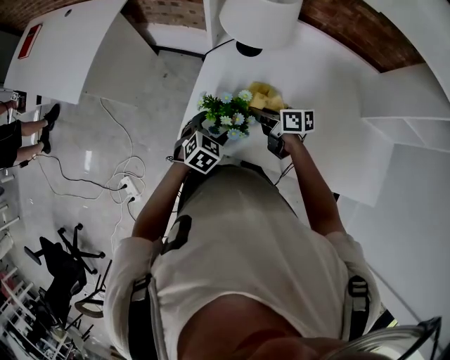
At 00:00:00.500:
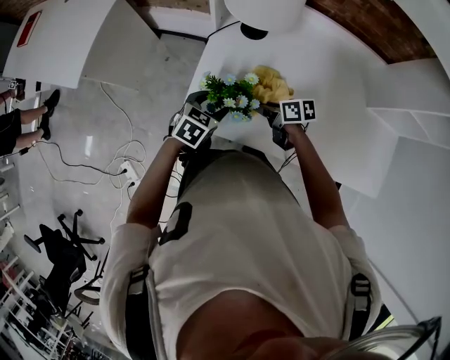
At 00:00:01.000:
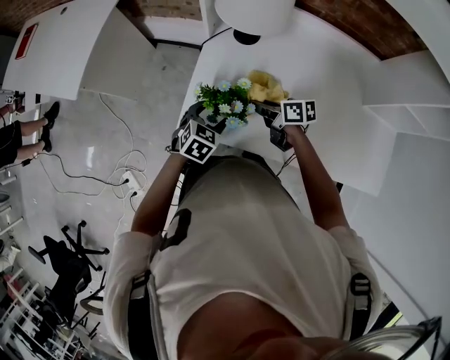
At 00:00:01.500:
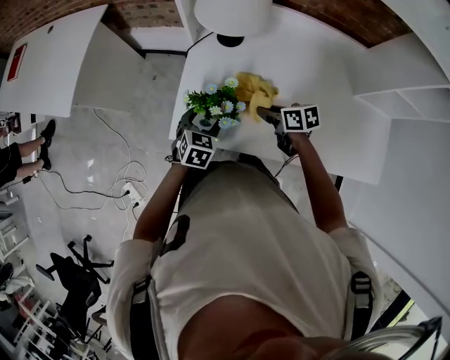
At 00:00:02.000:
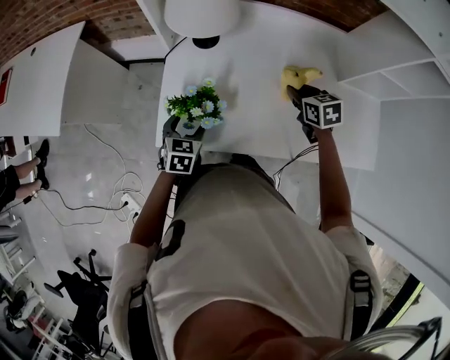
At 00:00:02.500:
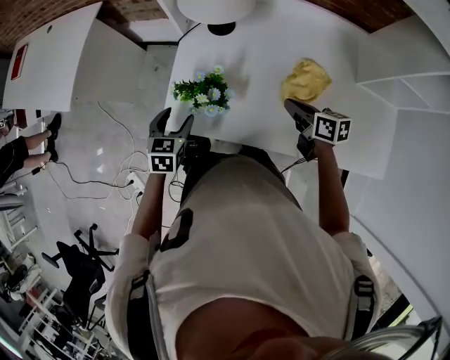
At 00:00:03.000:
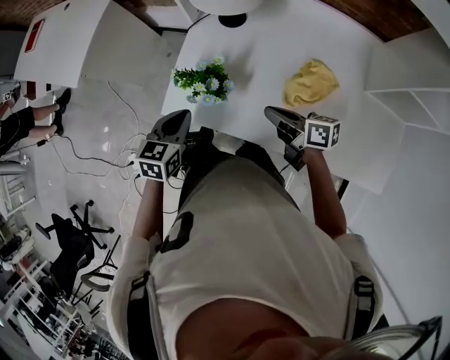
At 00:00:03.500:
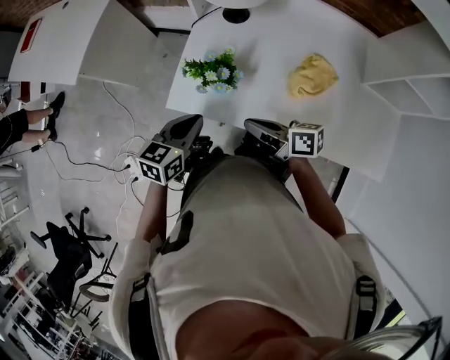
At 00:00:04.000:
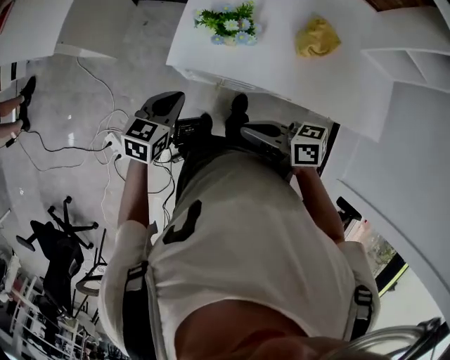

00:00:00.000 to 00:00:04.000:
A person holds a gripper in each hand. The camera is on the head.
00:00:00.000 to 00:00:02.000: The right gripper heads to the right, covering approximately 20 cm, and swivels some 40 degrees.
00:00:02.000 to 00:00:04.000: The left gripper moves backward and to the left, roughly 20 cm, and closes its fingers, while the right gripper heads to the left and backward, covering approximately 40 cm, and changes its angle by some 50 degrees.

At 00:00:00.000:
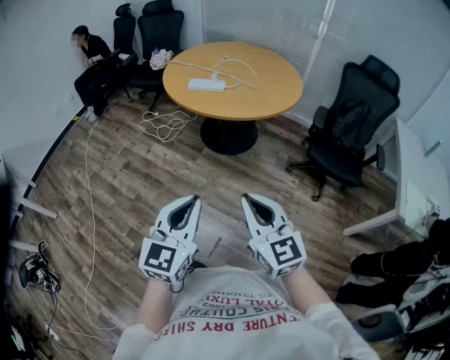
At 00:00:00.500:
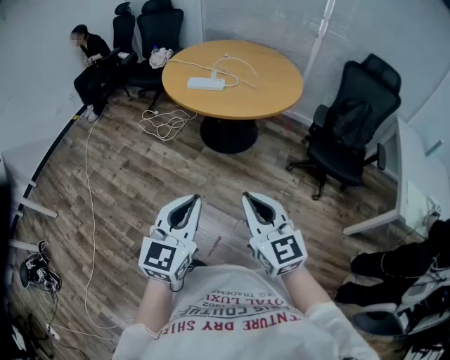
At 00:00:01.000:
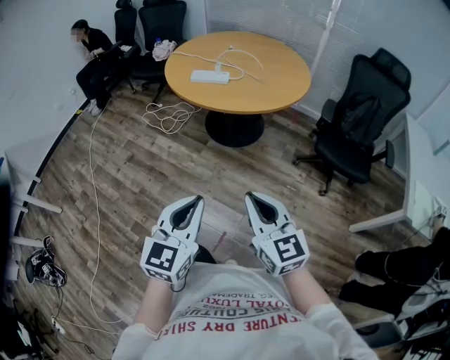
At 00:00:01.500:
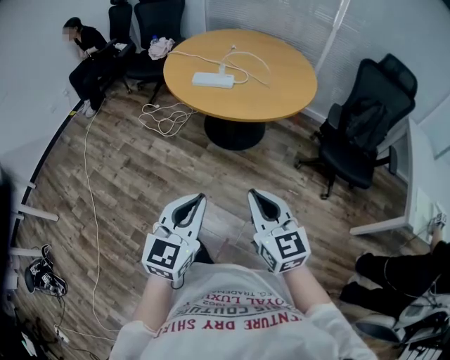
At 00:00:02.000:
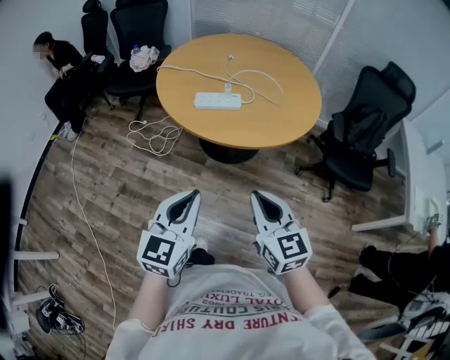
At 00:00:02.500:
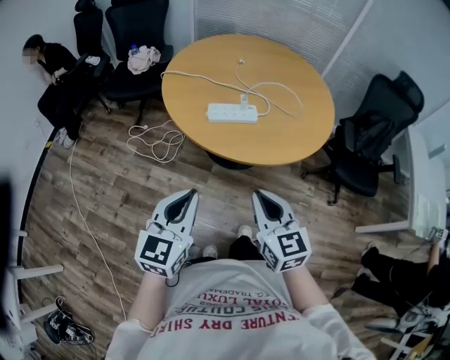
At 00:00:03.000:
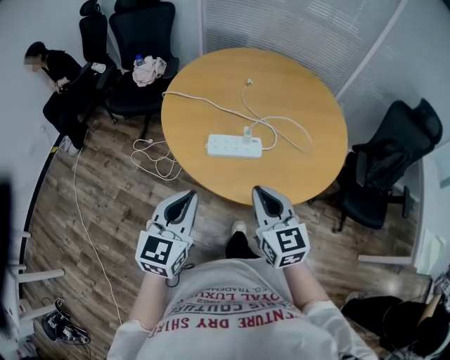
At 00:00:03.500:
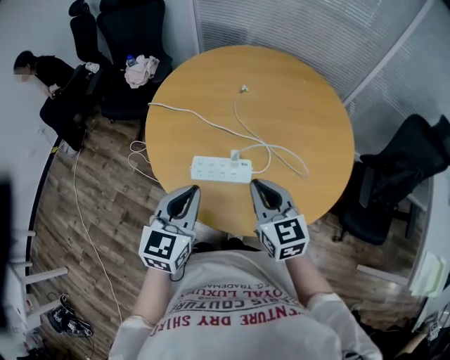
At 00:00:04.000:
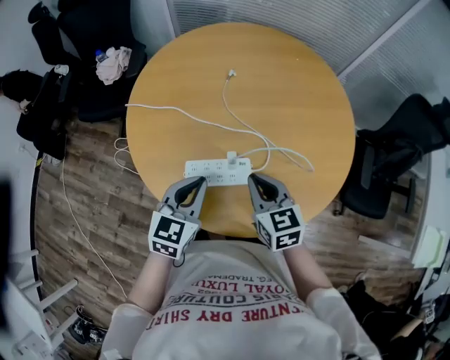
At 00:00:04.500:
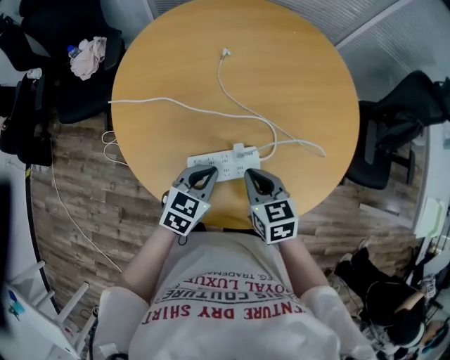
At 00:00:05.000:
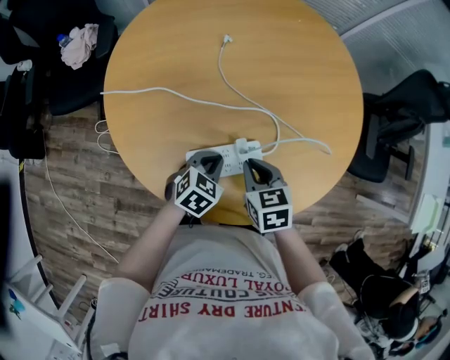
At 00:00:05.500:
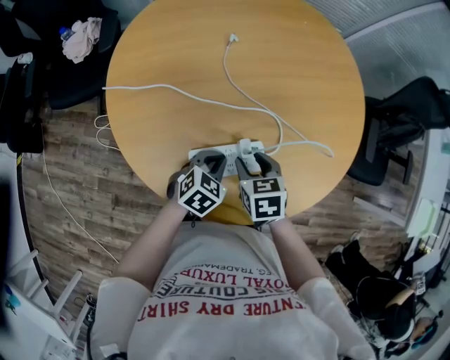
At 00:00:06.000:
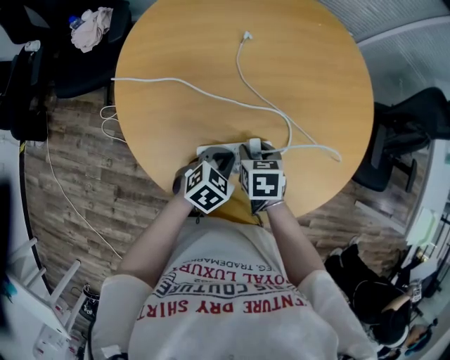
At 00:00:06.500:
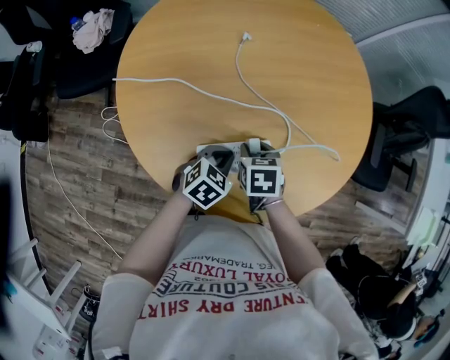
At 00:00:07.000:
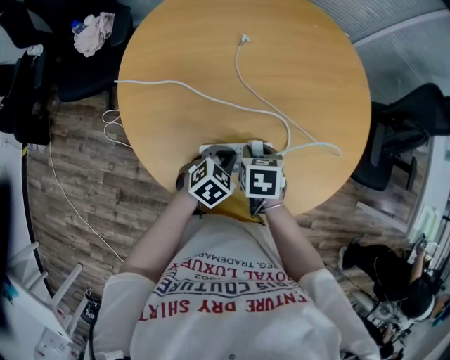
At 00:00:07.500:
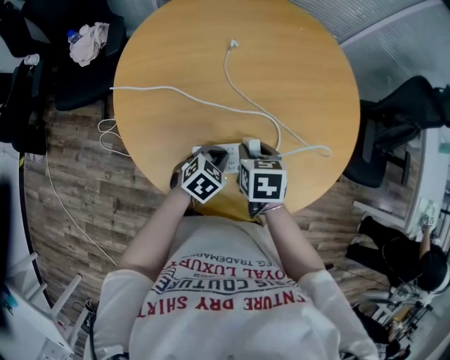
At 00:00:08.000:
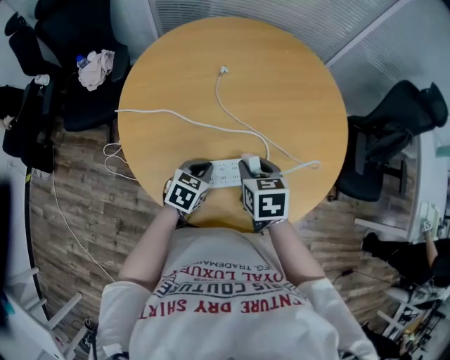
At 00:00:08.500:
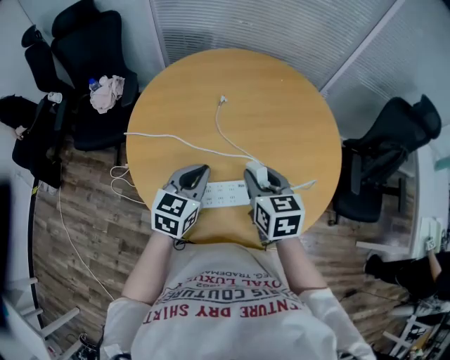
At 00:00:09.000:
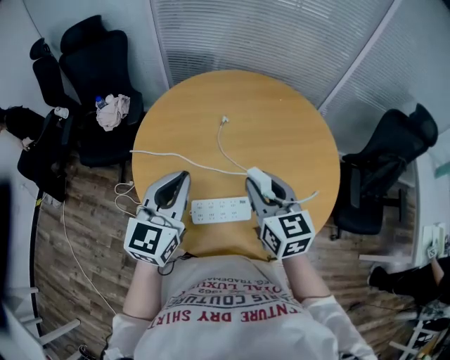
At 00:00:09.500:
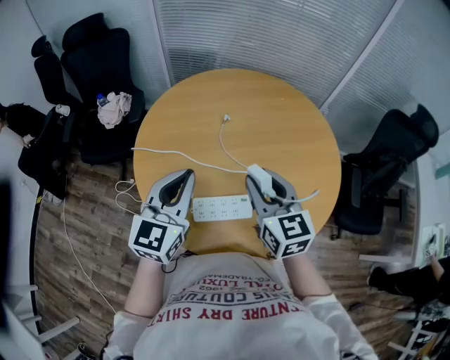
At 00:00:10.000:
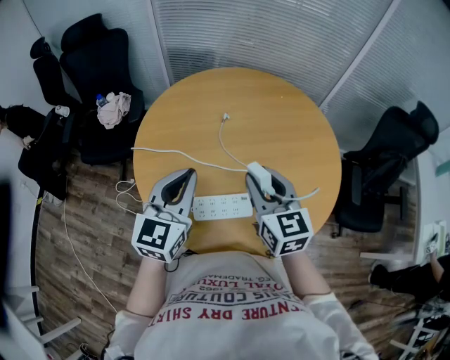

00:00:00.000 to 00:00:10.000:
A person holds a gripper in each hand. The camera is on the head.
00:00:00.000 to 00:00:02.000: Both grippers travel together forward and to the left, some 30 cm.
00:00:02.000 to 00:00:04.000: The pair of grippers is taken forward, roughly 50 cm.
00:00:04.000 to 00:00:06.000: The two grippers go some 15 cm downward. The left gripper rotates approximately 40 degrees. Meanwhile the right gripper angles its fingers downward, by roughly 30 degrees, and opens up.
00:00:06.000 to 00:00:08.000: The right gripper moves upward, some 10 cm.
00:00:08.000 to 00:00:10.000: The left gripper moves upward, about 30 cm, and tips its fingers upward by about 40 degrees. The right gripper shifts some 15 cm upward, and angles its fingers upward, by some 30 degrees.

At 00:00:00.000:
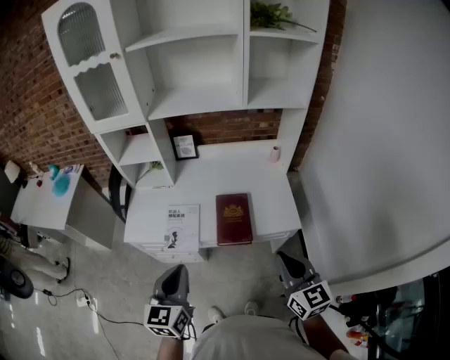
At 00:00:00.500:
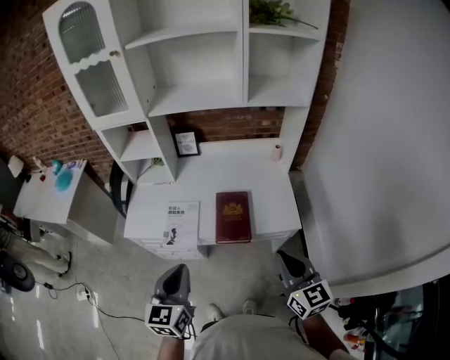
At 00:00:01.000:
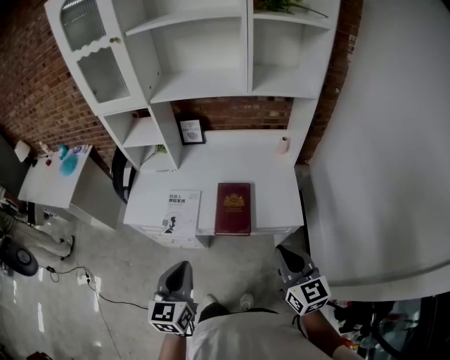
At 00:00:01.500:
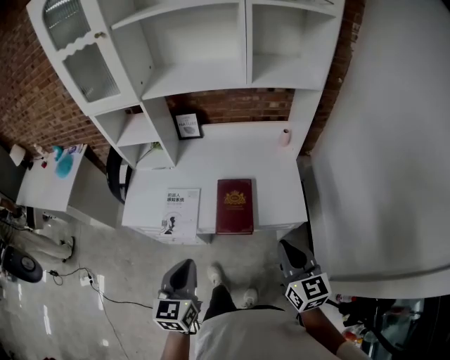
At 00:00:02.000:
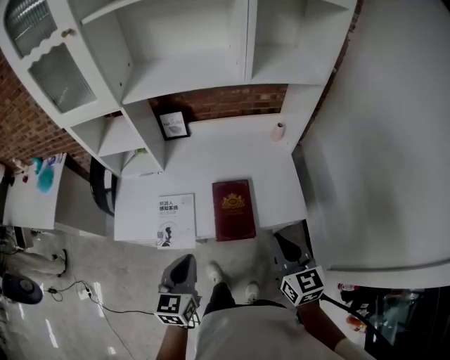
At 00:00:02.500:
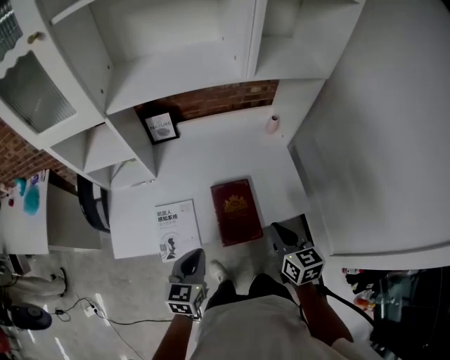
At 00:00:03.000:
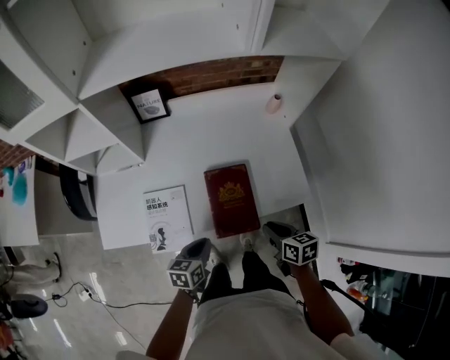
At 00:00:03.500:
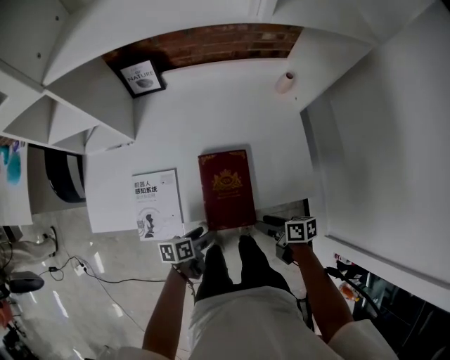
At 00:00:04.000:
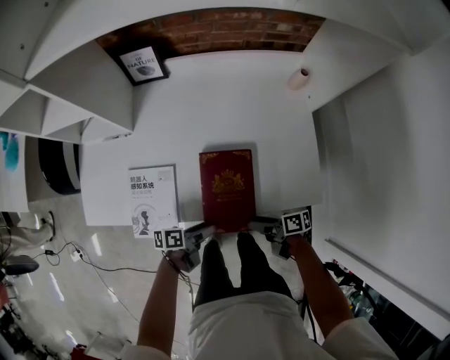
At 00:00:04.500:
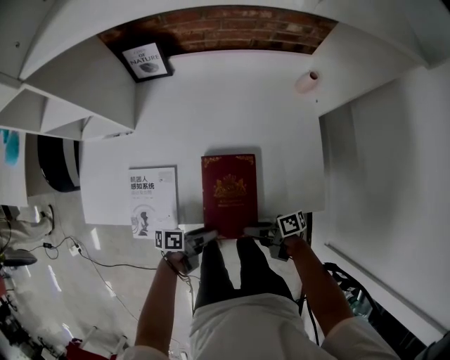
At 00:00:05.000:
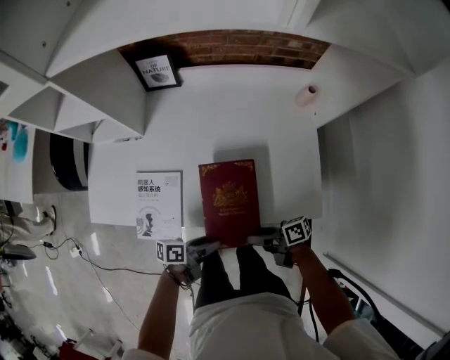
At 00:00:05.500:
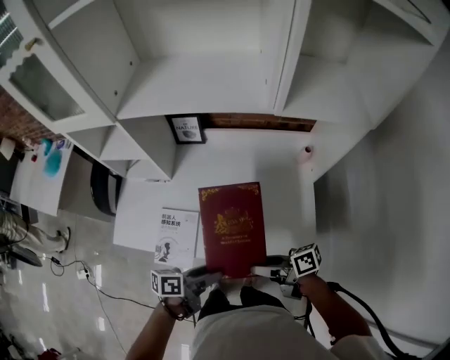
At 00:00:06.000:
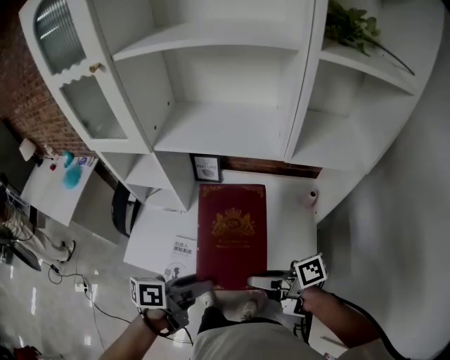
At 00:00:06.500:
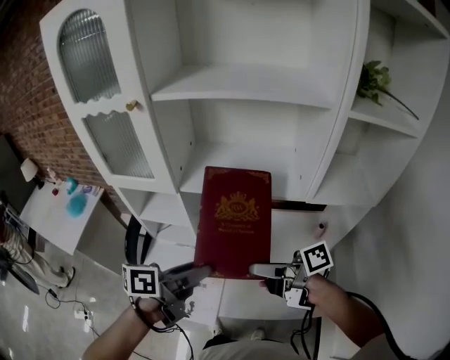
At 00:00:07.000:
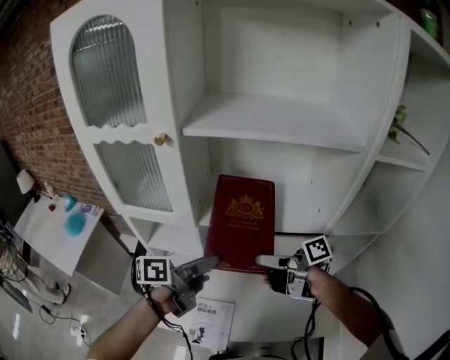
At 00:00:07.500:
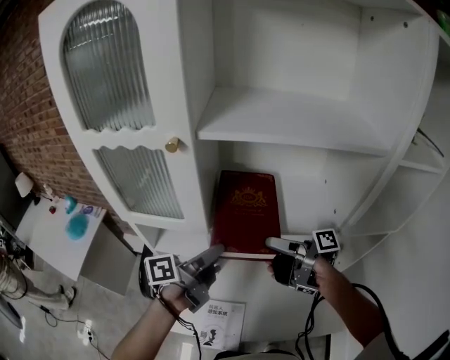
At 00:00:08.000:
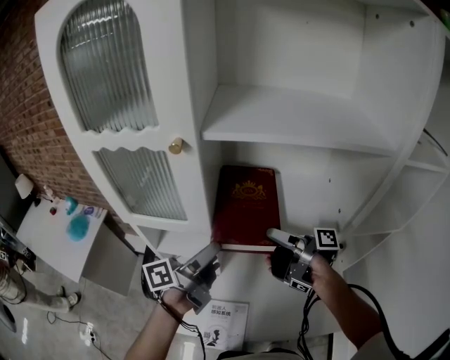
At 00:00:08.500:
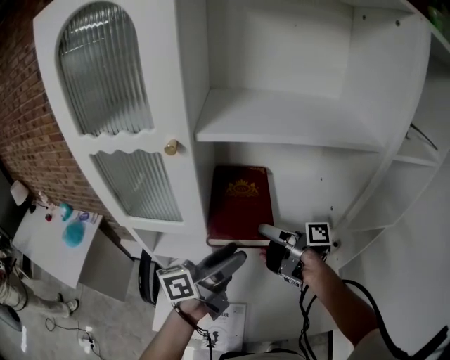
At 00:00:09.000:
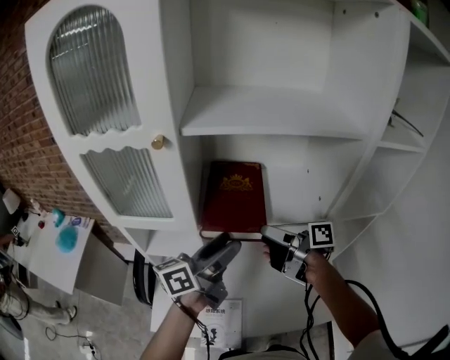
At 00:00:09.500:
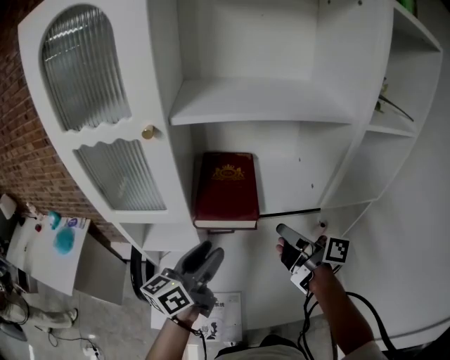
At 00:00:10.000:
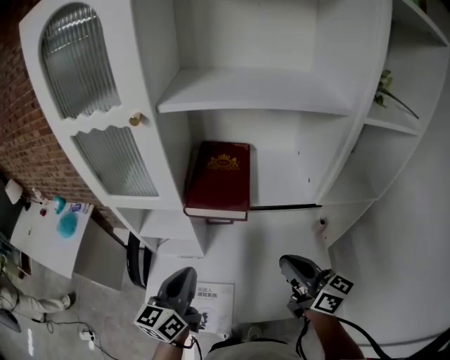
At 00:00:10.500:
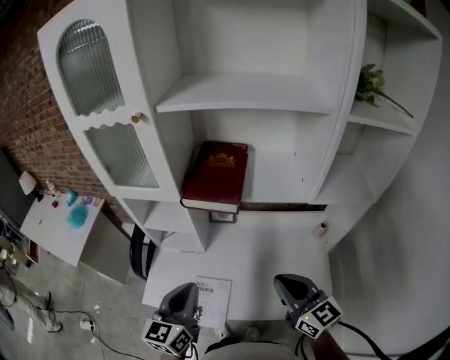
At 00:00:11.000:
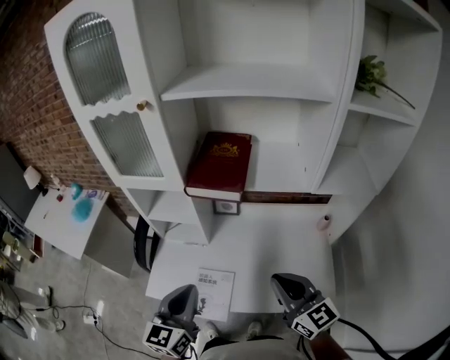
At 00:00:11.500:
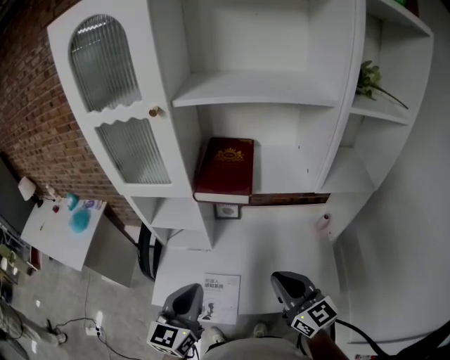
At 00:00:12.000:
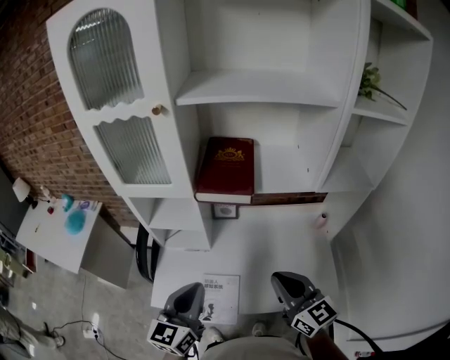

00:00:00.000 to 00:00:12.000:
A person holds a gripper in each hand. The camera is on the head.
00:00:00.000 to 00:00:02.000: Both grippers travel together forward and downward, some 15 cm.
00:00:02.000 to 00:00:04.000: Both grippers move downward, roughly 35 cm. The left gripper rotates around the line of its fingers by roughly 60 degrees, counterclockwise from behind, and opens up; the right gripper turns by approximately 80 degrees, and opens up.
00:00:04.000 to 00:00:06.000: The grippers both shift upward by roughly 40 cm. The right gripper turns by roughly 30 degrees, while the left gripper changes its angle by some 30 degrees.
00:00:06.000 to 00:00:08.000: The left gripper shifts by roughly 35 cm, and swivels some 30 degrees. The right gripper moves some 35 cm, and swivels approximately 30 degrees.
00:00:08.000 to 00:00:10.000: The right gripper goes some 20 cm backward and to the right, rotates around the line of its fingers by roughly 70 degrees, counterclockwise from behind, and closes up; the left gripper moves backward, some 15 cm, twists roughly 40 degrees clockwise, seen from behind, and closes.
00:00:10.000 to 00:00:12.000: The right gripper shifts some 10 cm backward and to the left, and turns by approximately 20 degrees, while the left gripper shifts roughly 10 cm backward.
